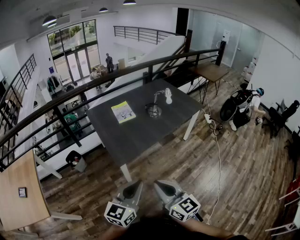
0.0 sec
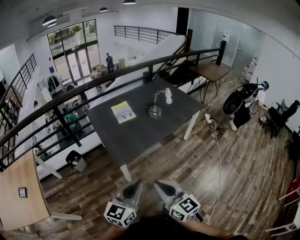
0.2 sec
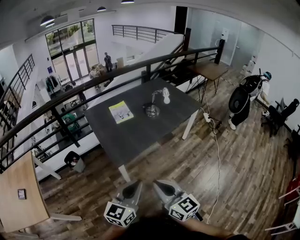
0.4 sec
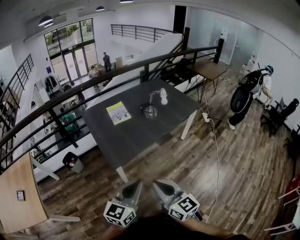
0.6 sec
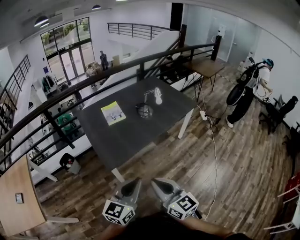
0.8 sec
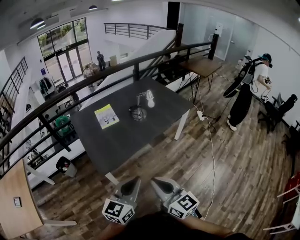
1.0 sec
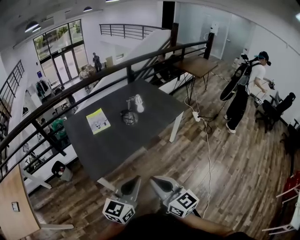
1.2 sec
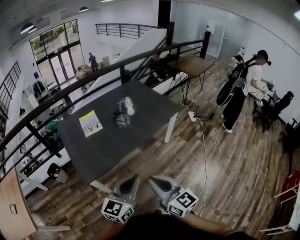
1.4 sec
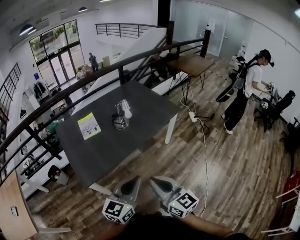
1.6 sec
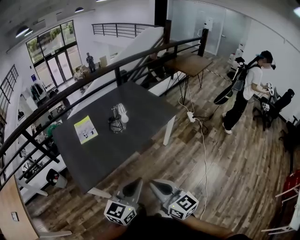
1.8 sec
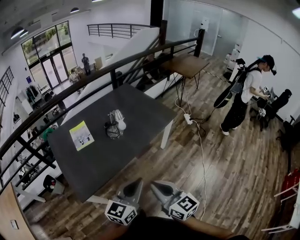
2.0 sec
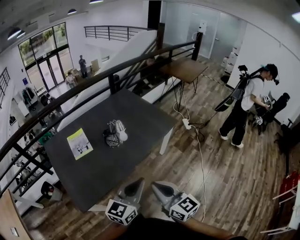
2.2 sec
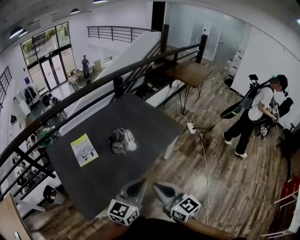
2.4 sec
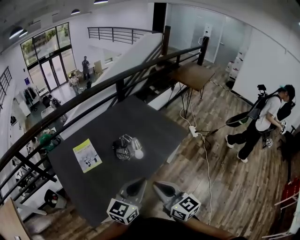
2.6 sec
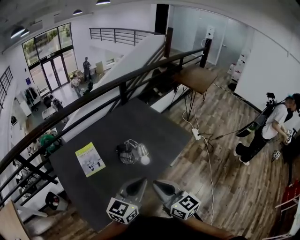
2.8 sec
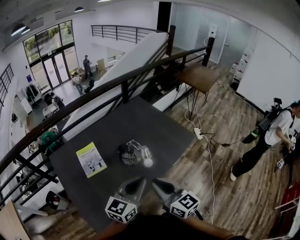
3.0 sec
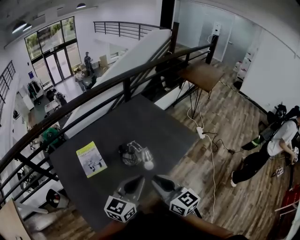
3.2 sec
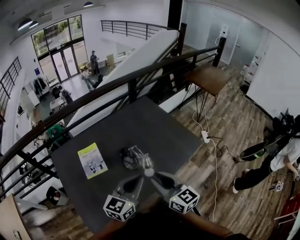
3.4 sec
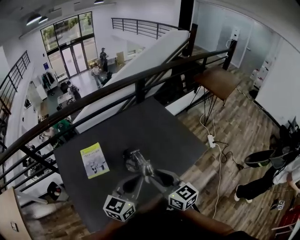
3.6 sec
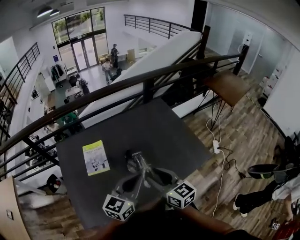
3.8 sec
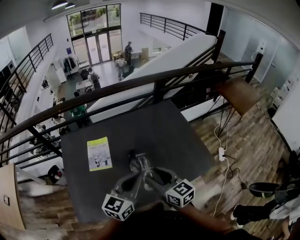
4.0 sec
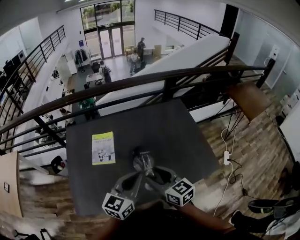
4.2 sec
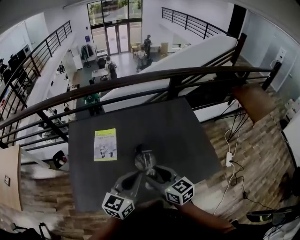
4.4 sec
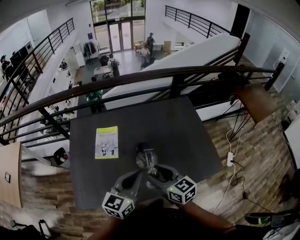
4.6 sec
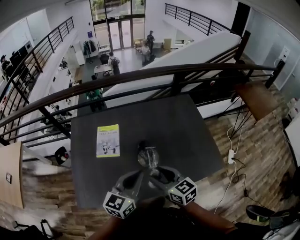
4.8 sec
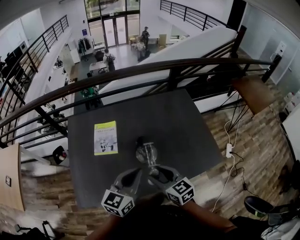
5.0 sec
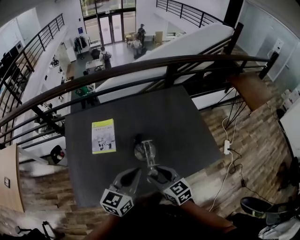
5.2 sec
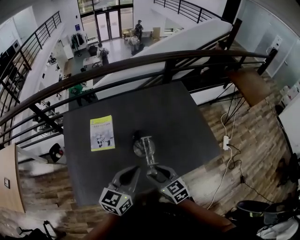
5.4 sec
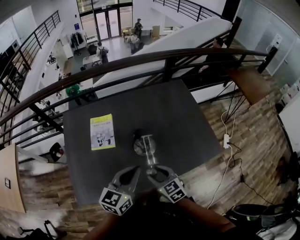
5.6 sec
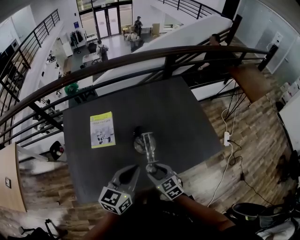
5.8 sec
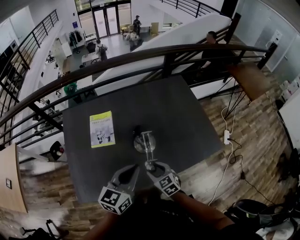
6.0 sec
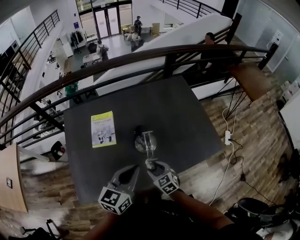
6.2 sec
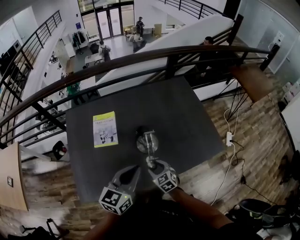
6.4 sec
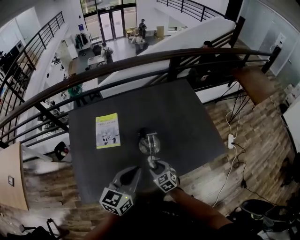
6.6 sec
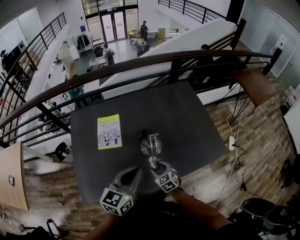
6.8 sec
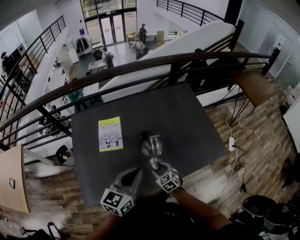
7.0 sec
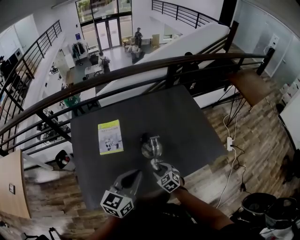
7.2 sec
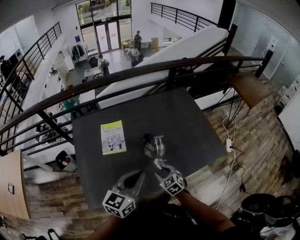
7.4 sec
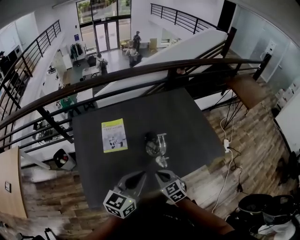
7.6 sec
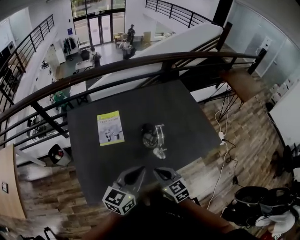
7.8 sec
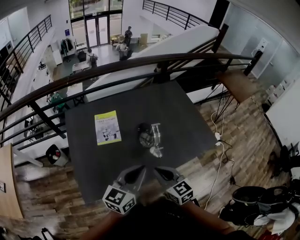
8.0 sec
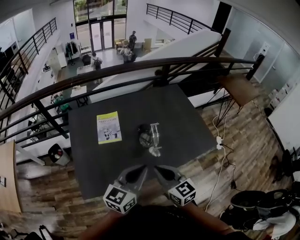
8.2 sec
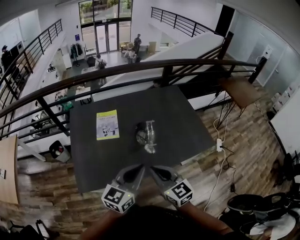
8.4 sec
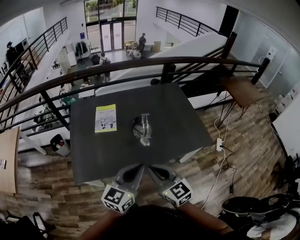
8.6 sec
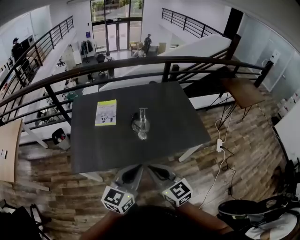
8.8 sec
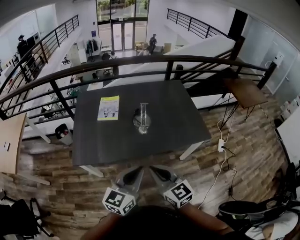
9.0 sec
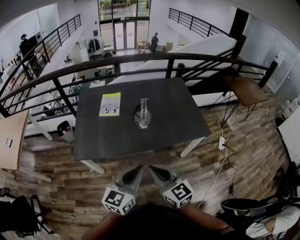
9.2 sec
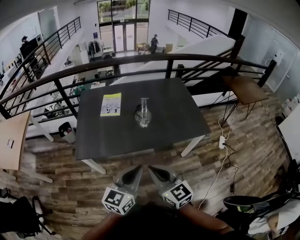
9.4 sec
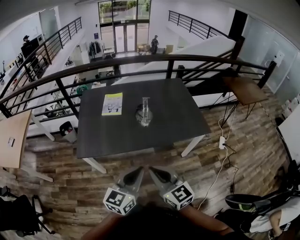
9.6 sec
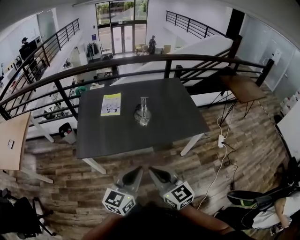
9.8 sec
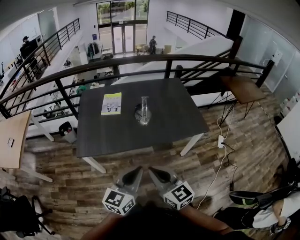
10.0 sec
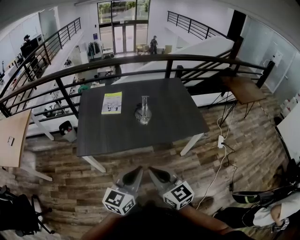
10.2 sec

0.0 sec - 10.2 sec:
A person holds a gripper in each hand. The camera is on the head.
0.0 sec - 1.4 sec: Both grippers move to the right and forward, about 25 cm.
1.4 sec - 3.0 sec: The grippers both shift forward by roughly 35 cm.
3.0 sec - 4.4 sec: The left gripper changes place by roughly 15 cm, and swivels some 30 degrees; the right gripper changes place by some 20 cm, changes its angle by roughly 40 degrees, and opens.
4.4 sec - 5.8 sec: The right gripper goes roughly 15 cm downward, and swivels roughly 20 degrees.
5.8 sec - 7.2 sec: The right gripper is displaced downward by some 10 cm.
7.2 sec - 8.8 sec: The right gripper goes approximately 35 cm upward and backward, points its fingers approximately 30 degrees further upward, and closes up; the left gripper moves backward and to the right, roughly 20 cm.
8.8 sec - 10.2 sec: The two grippers go some 15 cm backward.

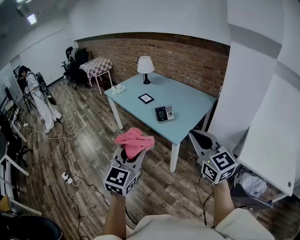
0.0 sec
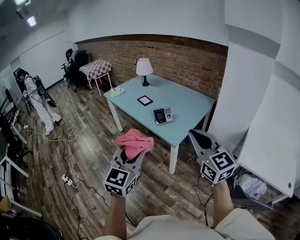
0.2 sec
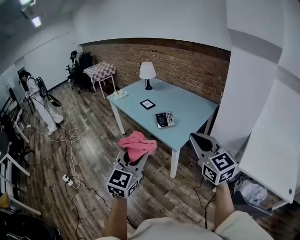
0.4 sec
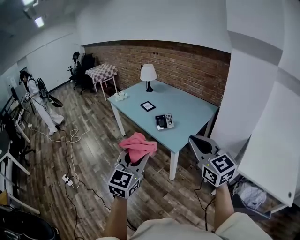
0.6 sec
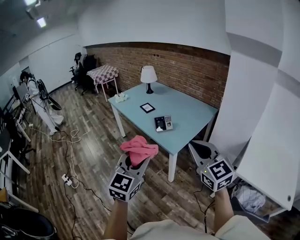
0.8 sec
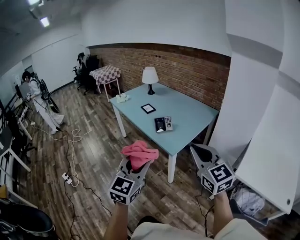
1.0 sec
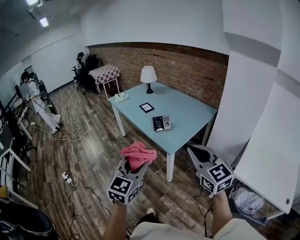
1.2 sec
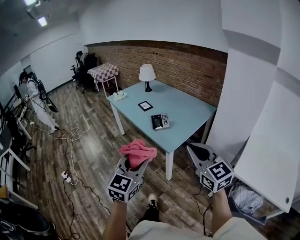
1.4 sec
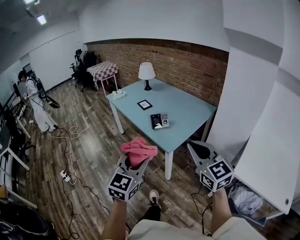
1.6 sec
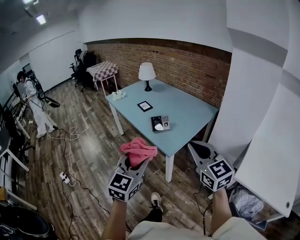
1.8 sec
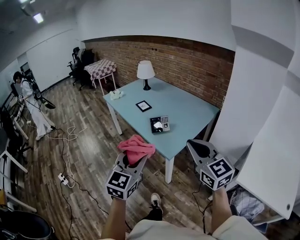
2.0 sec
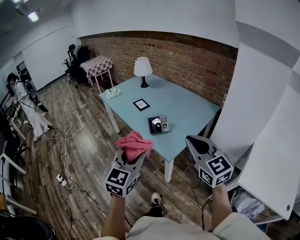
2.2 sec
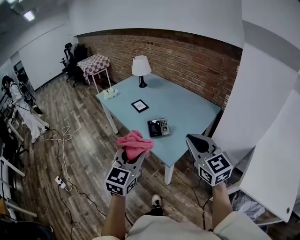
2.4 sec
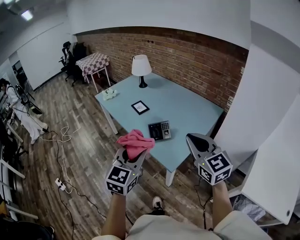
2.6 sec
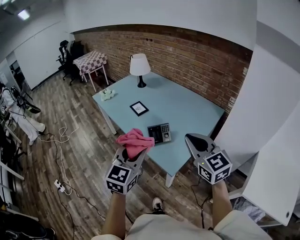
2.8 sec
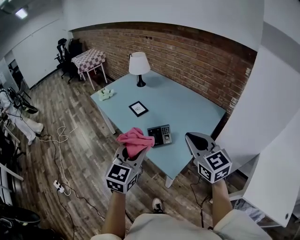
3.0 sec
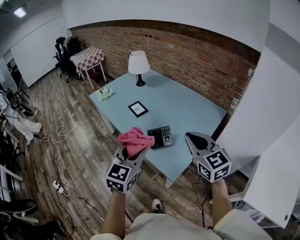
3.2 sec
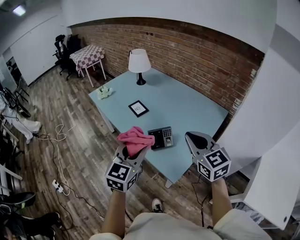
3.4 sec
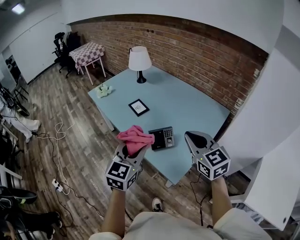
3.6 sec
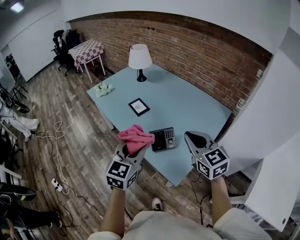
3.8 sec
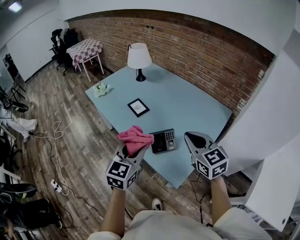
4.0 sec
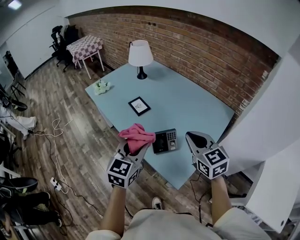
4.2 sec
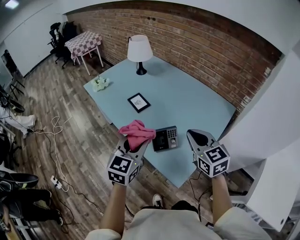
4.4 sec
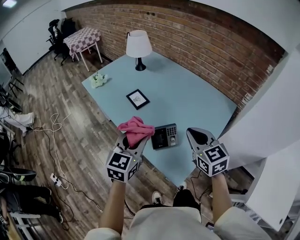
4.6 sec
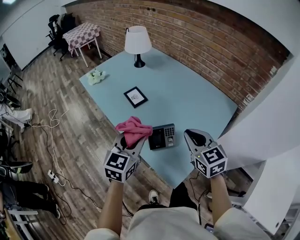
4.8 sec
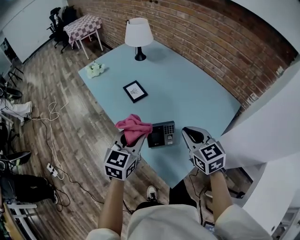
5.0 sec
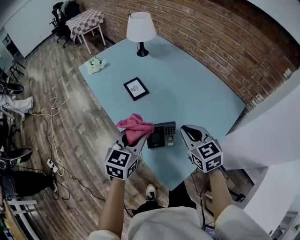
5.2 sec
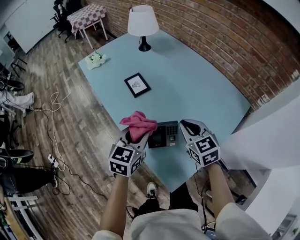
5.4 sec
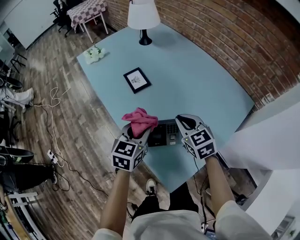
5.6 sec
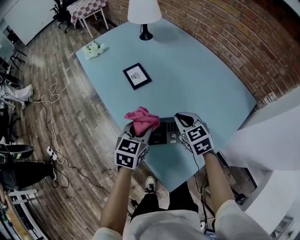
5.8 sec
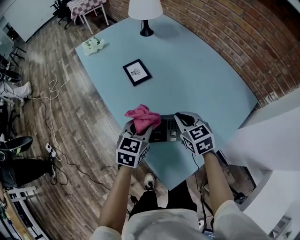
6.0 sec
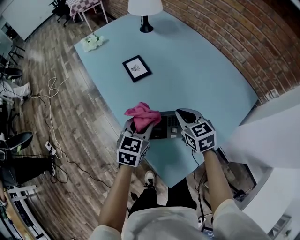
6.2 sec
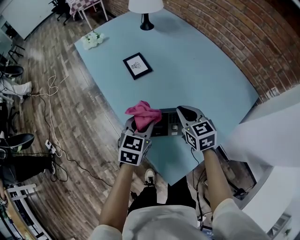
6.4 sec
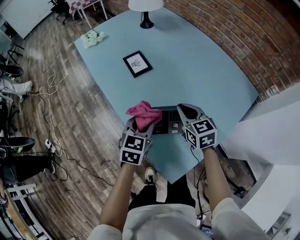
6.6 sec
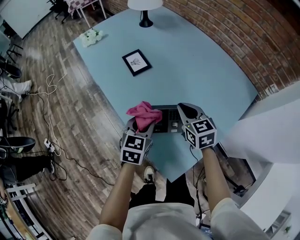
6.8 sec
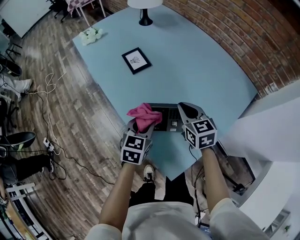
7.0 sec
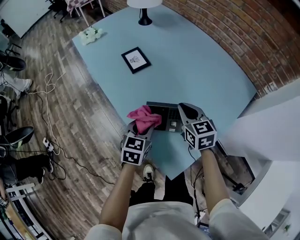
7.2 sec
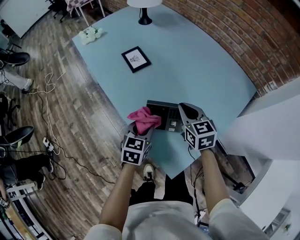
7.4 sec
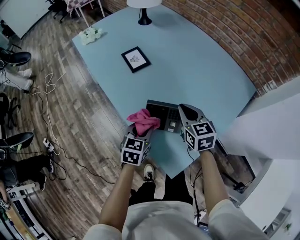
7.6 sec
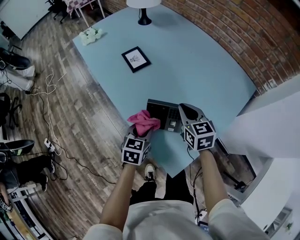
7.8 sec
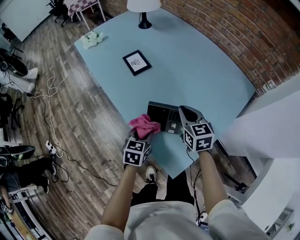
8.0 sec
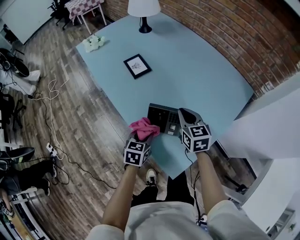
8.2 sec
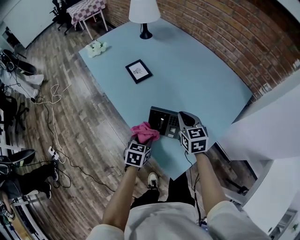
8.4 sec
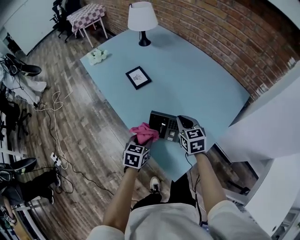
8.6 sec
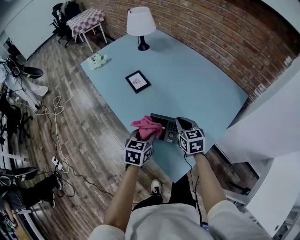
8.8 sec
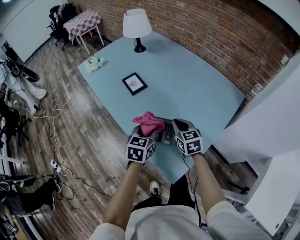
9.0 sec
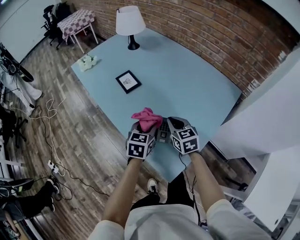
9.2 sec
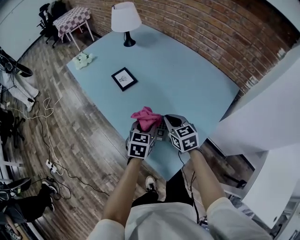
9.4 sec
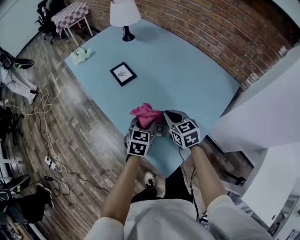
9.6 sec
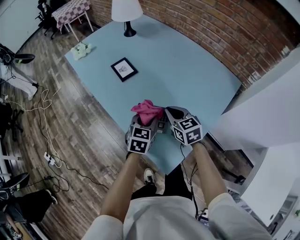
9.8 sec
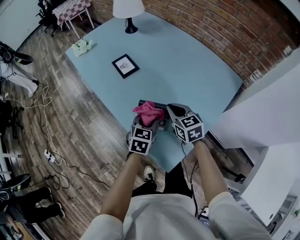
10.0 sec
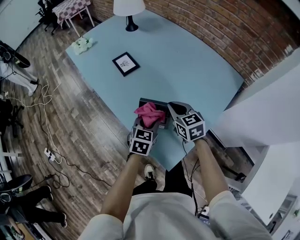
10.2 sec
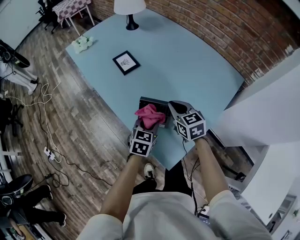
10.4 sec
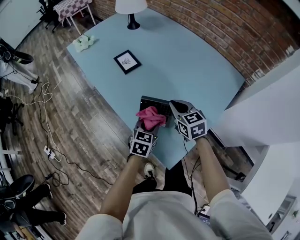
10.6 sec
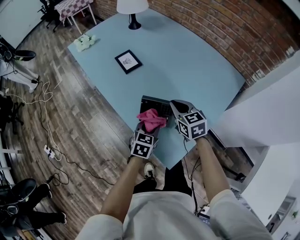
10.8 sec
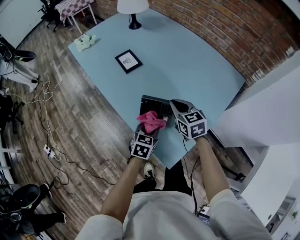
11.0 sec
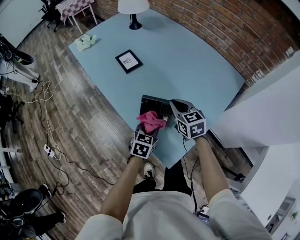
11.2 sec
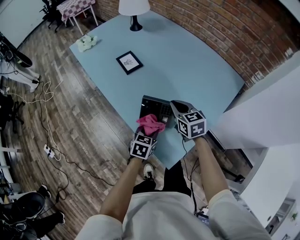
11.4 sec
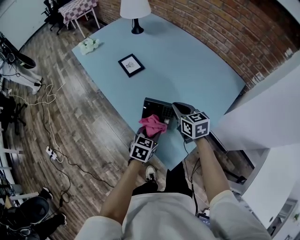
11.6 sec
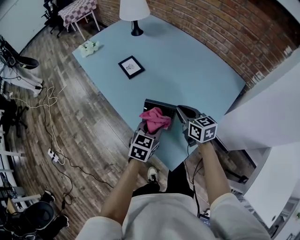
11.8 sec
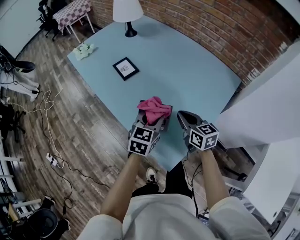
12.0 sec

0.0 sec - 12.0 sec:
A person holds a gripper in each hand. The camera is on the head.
0.0 sec - 1.6 sec: Both grippers travel together to the right, approximately 10 cm.
1.6 sec - 3.0 sec: The two grippers go approximately 30 cm forward.
3.0 sec - 4.4 sec: Both grippers move forward and downward, approximately 15 cm.
4.4 sec - 6.0 sec: Both grippers move downward and forward, approximately 25 cm.
6.0 sec - 7.6 sec: The left gripper travels downward and backward by roughly 10 cm.
7.6 sec - 9.0 sec: The left gripper heads upward, covering some 10 cm.
9.0 sec - 10.4 sec: The left gripper heads downward, covering roughly 5 cm.
10.4 sec - 12.0 sec: The left gripper goes about 10 cm upward, while the right gripper changes place by roughly 5 cm.

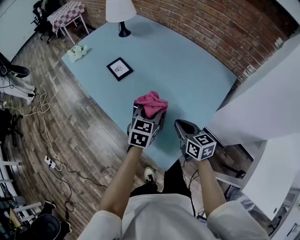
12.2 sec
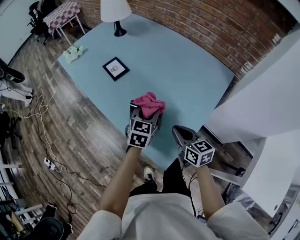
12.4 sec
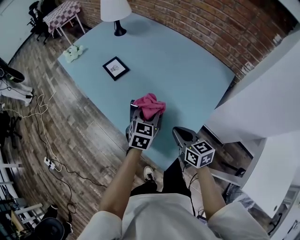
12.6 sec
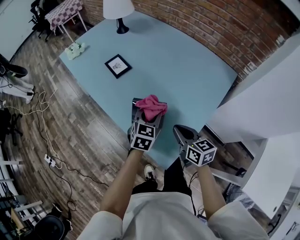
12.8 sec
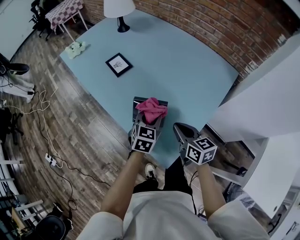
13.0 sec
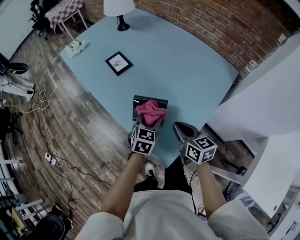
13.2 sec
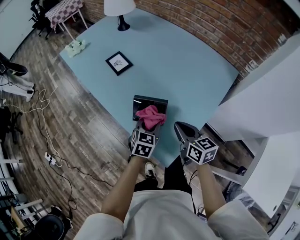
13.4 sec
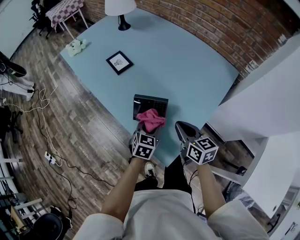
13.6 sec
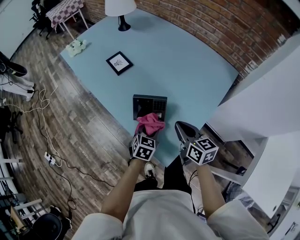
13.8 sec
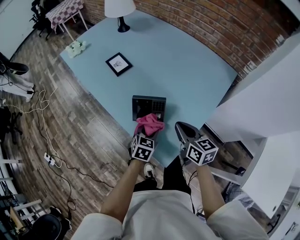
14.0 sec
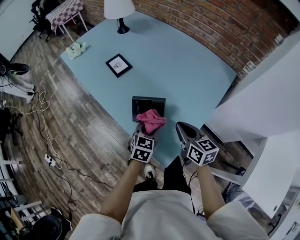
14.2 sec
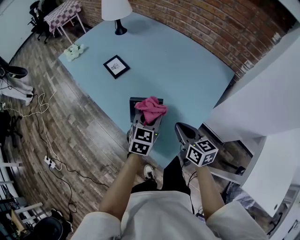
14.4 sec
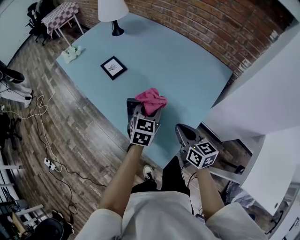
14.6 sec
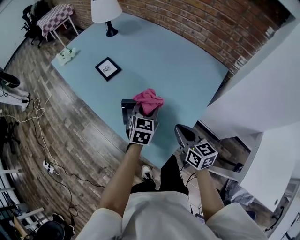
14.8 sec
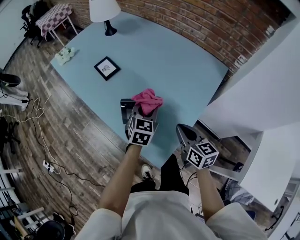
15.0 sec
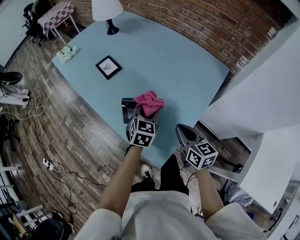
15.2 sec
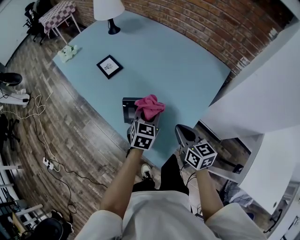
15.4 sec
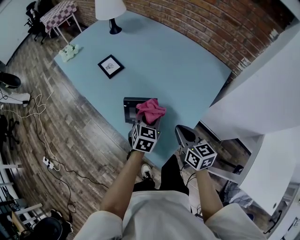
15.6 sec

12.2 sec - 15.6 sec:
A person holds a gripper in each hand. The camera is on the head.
12.2 sec - 13.8 sec: The left gripper shifts approximately 15 cm downward and backward.
13.8 sec - 15.6 sec: The left gripper shifts some 10 cm upward and forward.
